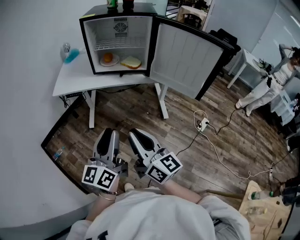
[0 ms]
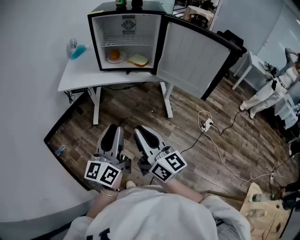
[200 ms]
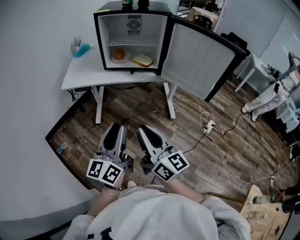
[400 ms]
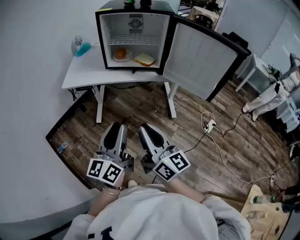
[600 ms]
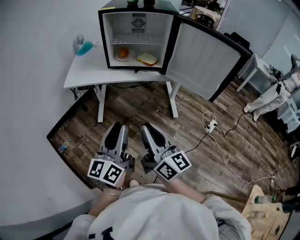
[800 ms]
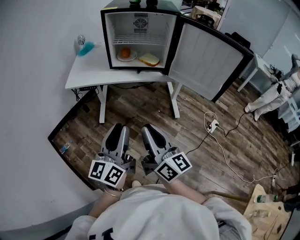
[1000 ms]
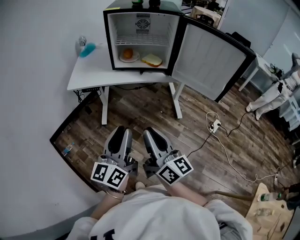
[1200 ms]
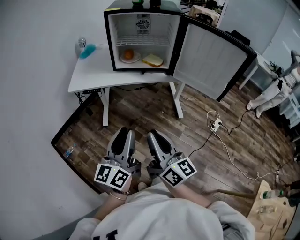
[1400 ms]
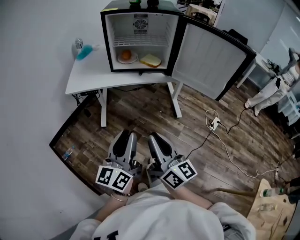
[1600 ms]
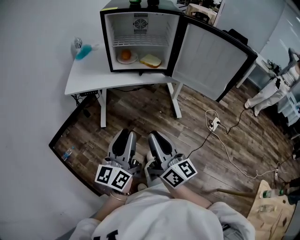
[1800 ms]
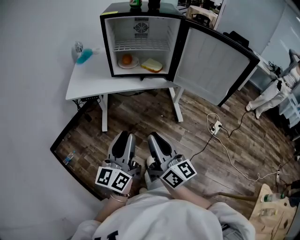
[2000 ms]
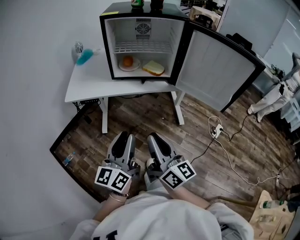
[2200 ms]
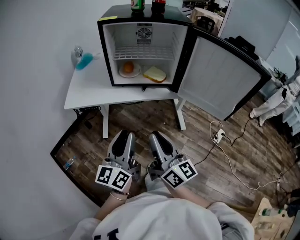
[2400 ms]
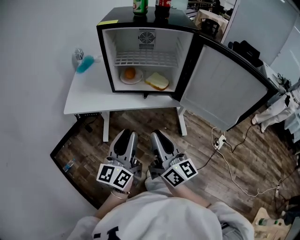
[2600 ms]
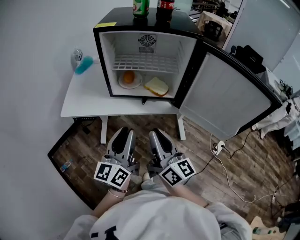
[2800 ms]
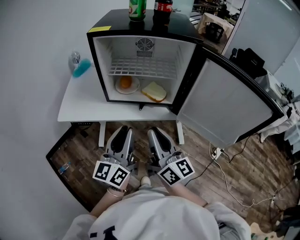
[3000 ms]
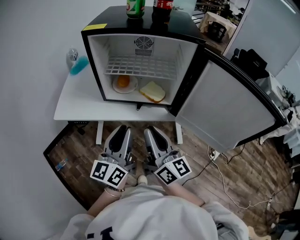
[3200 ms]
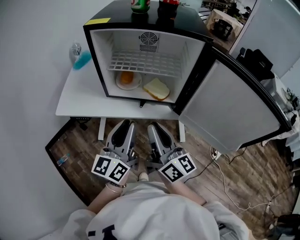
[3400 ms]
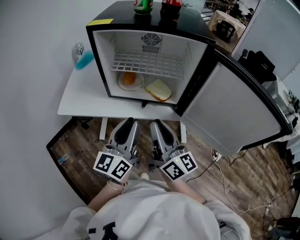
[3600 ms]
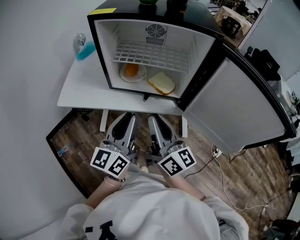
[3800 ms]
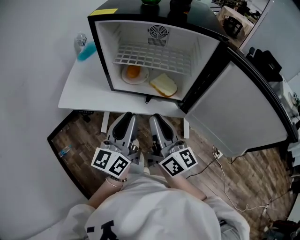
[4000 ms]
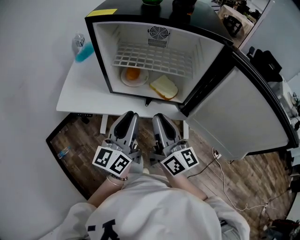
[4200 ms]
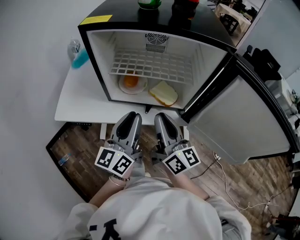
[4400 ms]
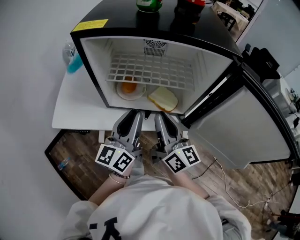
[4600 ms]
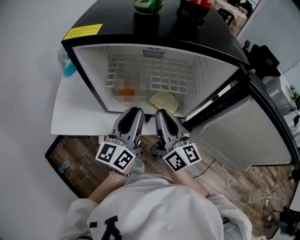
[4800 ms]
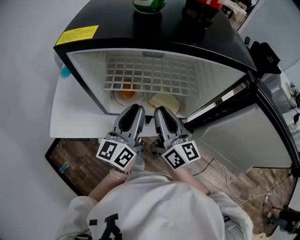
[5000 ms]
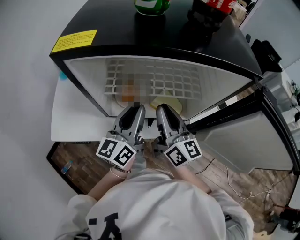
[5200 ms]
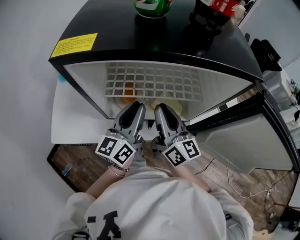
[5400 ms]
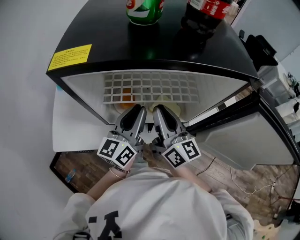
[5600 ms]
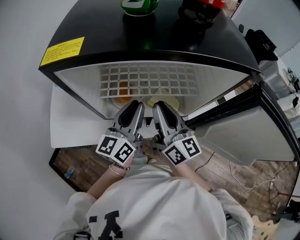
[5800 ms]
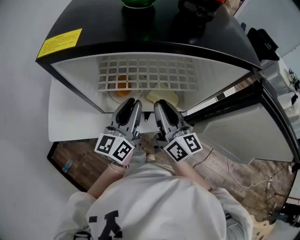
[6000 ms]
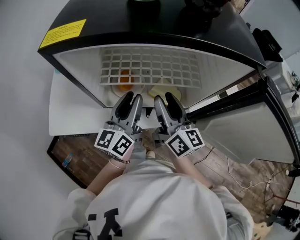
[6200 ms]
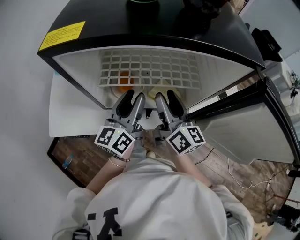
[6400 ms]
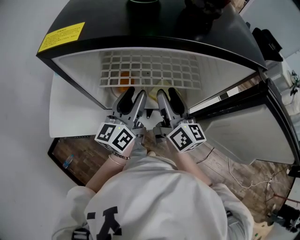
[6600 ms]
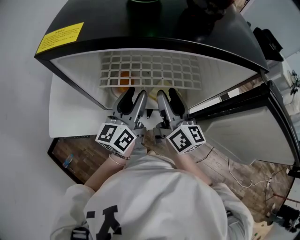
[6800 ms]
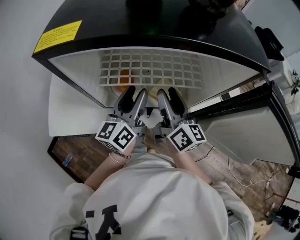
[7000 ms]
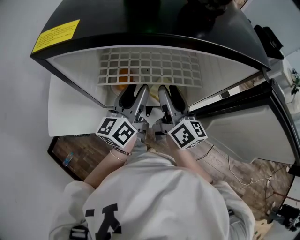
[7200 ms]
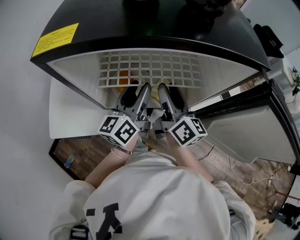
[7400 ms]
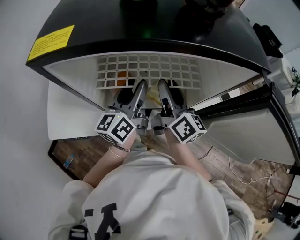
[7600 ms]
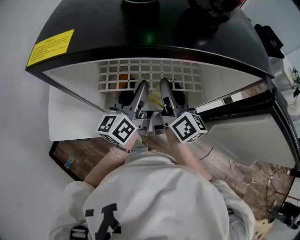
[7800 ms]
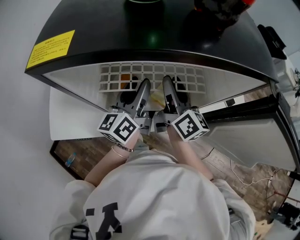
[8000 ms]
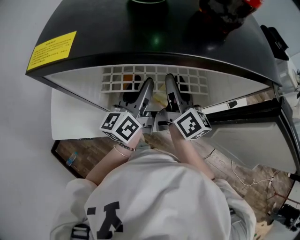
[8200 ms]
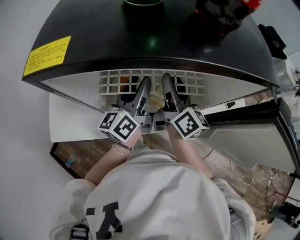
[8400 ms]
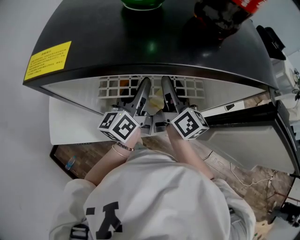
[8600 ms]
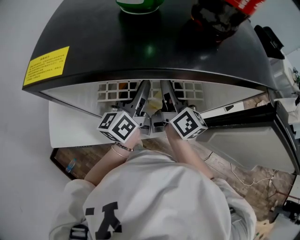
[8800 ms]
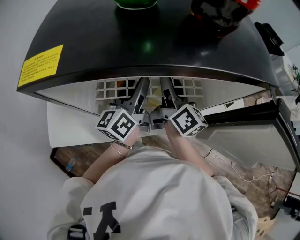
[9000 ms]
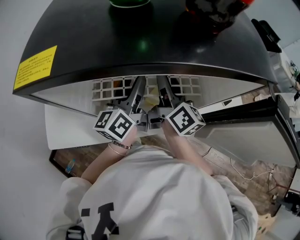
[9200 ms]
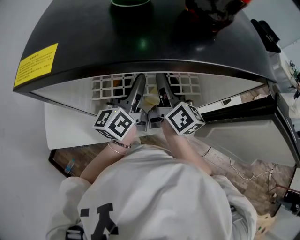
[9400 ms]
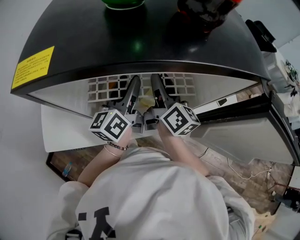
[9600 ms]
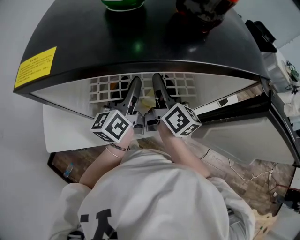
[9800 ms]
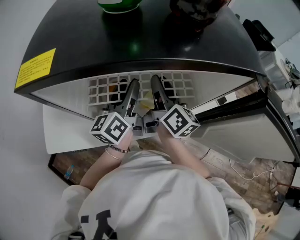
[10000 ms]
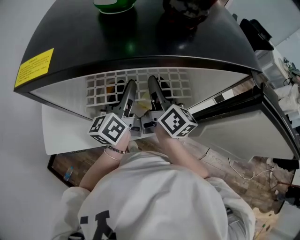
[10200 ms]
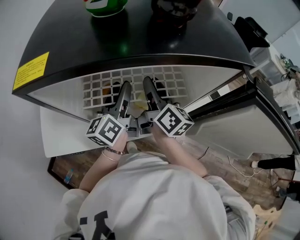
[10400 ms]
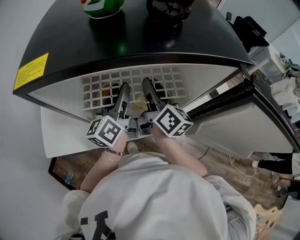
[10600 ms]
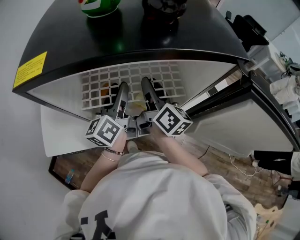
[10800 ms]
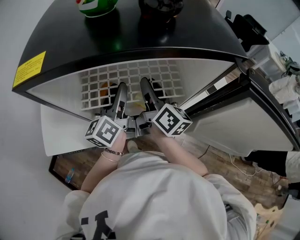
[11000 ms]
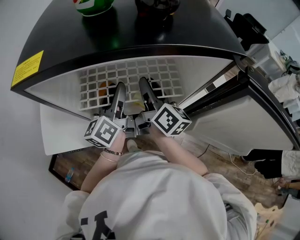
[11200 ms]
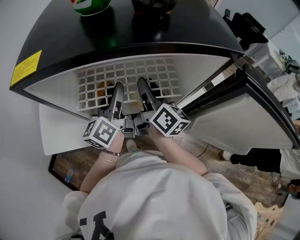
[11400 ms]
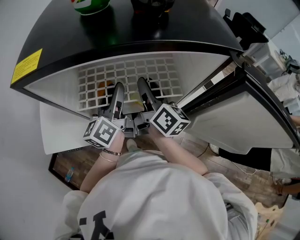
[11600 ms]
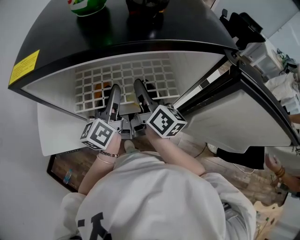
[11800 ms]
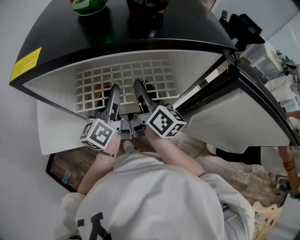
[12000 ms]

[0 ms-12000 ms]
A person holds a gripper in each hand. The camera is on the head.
0 ms to 1600 ms: Both grippers travel together to the left, roughly 5 cm.
1600 ms to 3000 ms: Both grippers move forward, roughly 25 cm.
3000 ms to 4400 ms: The two grippers go some 15 cm forward.
4400 ms to 6000 ms: Both grippers travel together forward, some 15 cm.
6000 ms to 7600 ms: Both grippers move forward, approximately 5 cm. The left gripper opens. Meanwhile the right gripper opens.
7600 ms to 9000 ms: The right gripper heads forward, covering approximately 5 cm.
9000 ms to 10400 ms: The two grippers keep their place.
10400 ms to 12000 ms: The grippers stay close to where they were, moving slightly.

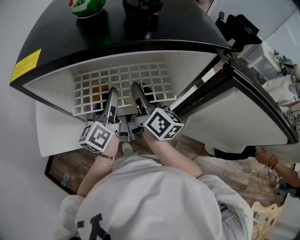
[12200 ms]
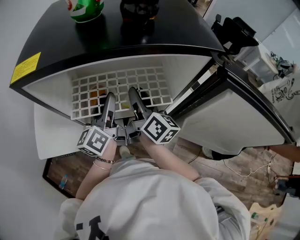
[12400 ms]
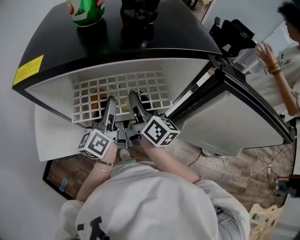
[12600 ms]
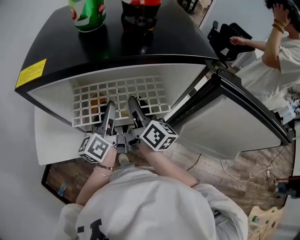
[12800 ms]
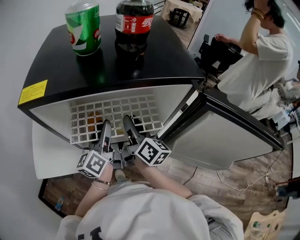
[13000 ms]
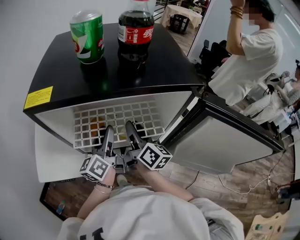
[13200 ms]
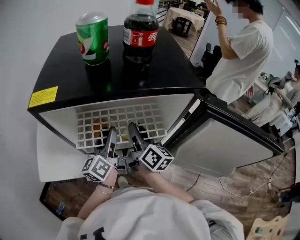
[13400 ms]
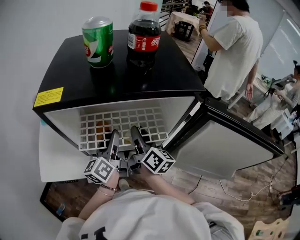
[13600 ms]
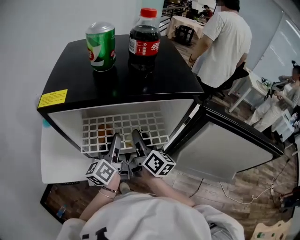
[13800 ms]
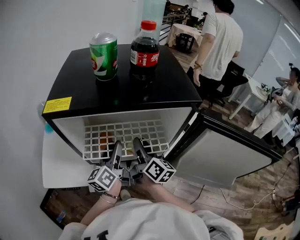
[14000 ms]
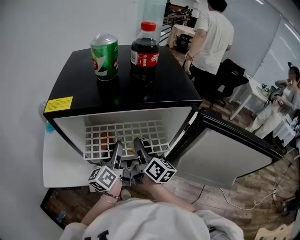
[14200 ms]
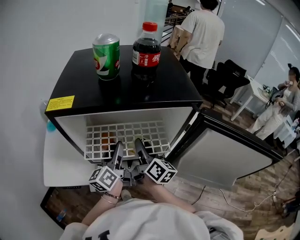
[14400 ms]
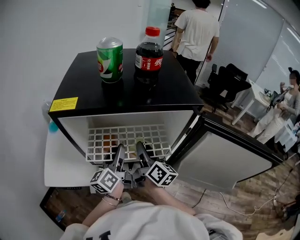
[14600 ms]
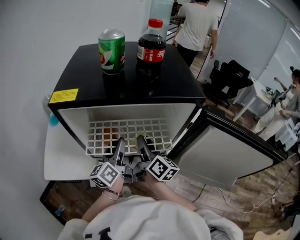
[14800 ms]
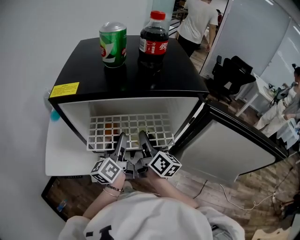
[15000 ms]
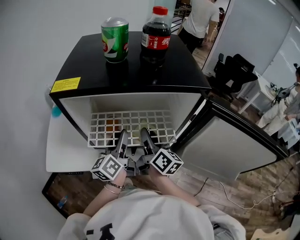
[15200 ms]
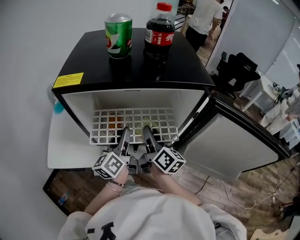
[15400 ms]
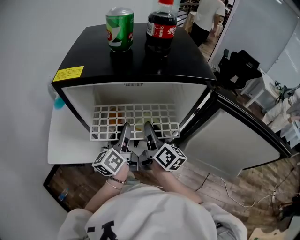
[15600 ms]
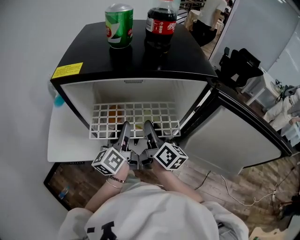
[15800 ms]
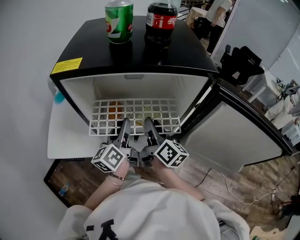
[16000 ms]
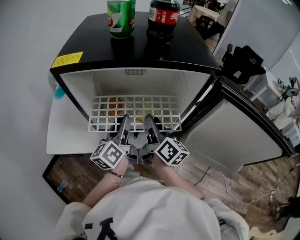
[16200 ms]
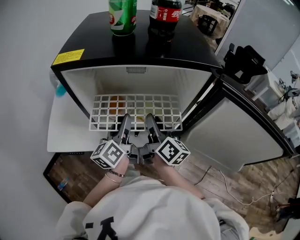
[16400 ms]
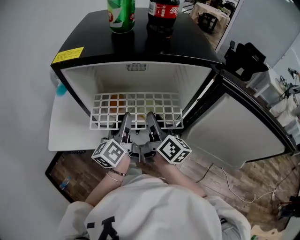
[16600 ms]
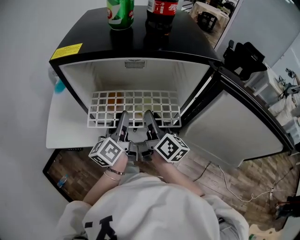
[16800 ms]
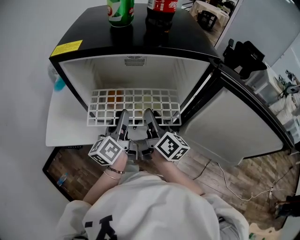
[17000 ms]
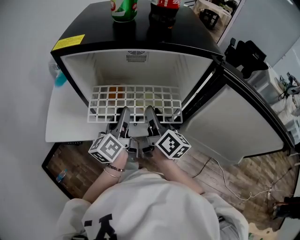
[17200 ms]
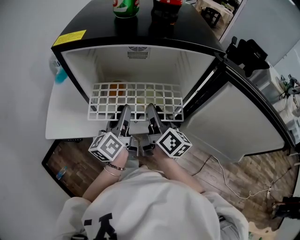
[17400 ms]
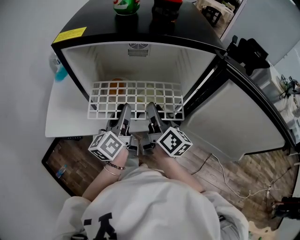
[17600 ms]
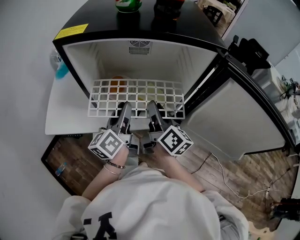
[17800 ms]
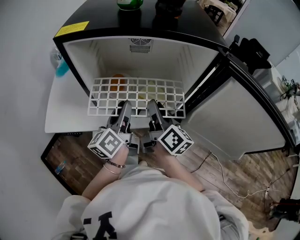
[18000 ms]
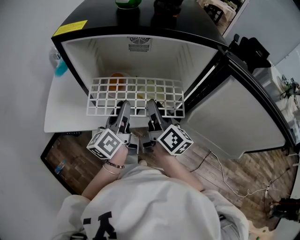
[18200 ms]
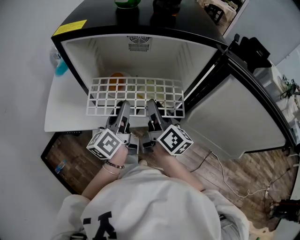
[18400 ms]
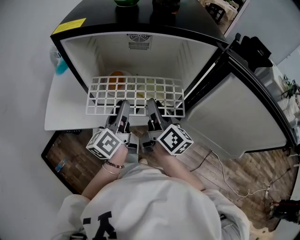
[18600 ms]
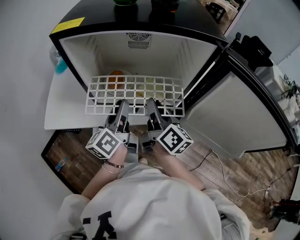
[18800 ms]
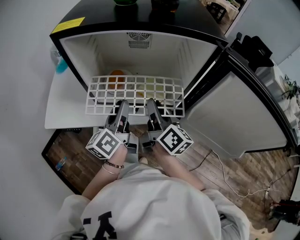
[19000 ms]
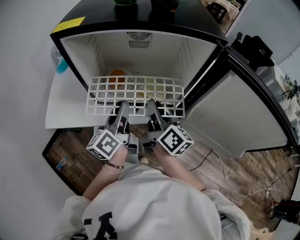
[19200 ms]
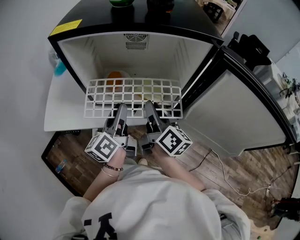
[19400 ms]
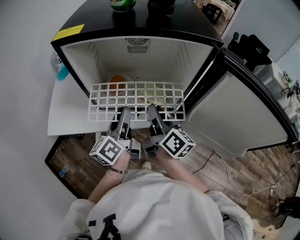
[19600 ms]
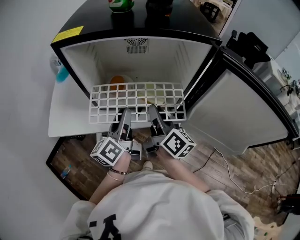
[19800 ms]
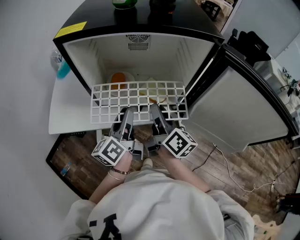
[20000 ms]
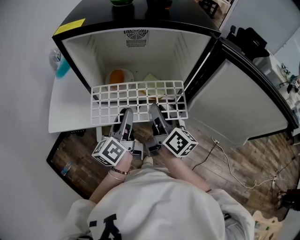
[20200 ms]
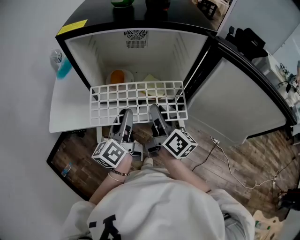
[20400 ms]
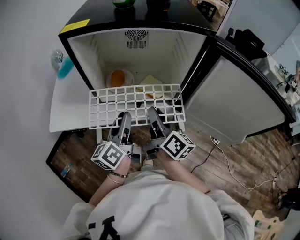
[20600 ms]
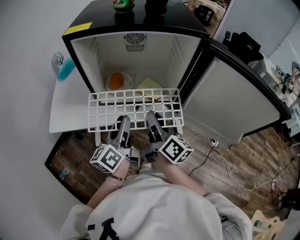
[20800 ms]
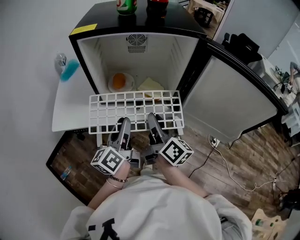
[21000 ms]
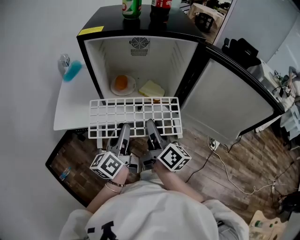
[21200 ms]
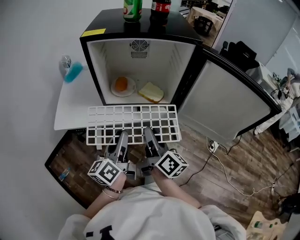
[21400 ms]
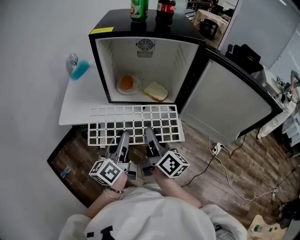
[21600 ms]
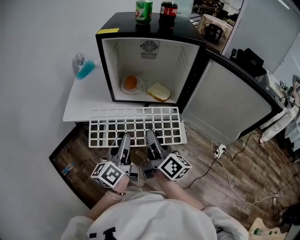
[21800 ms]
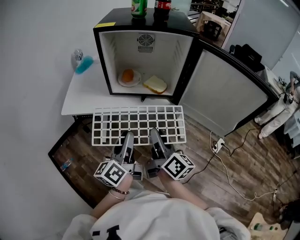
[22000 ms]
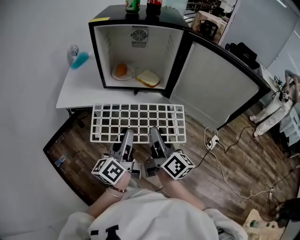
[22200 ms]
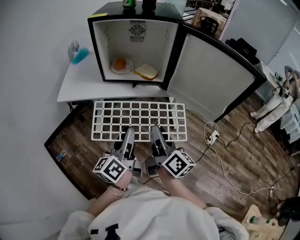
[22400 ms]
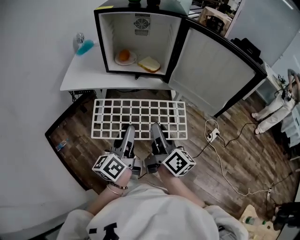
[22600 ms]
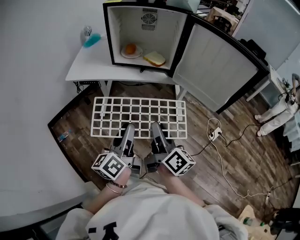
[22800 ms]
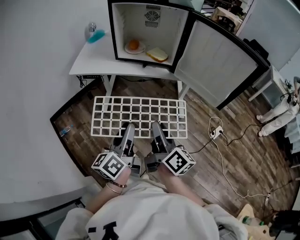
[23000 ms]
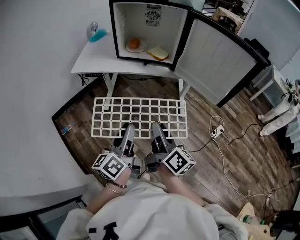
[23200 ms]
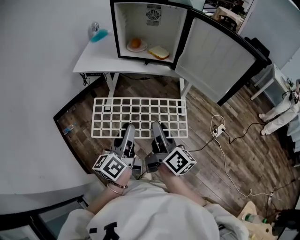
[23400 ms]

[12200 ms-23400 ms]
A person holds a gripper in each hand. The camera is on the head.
12200 ms to 15400 ms: The grippers make only small movements.
15400 ms to 17000 ms: The grippers make only small movements.
17000 ms to 18600 ms: The grippers make only small movements.
18600 ms to 20200 ms: The grippers stay close to where they were, moving slightly.
20200 ms to 21800 ms: Both grippers travel together backward, some 20 cm.
21800 ms to 23400 ms: Both grippers move backward, approximately 25 cm.

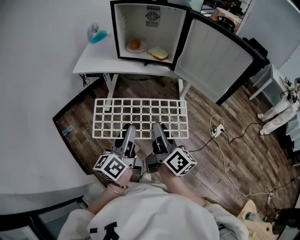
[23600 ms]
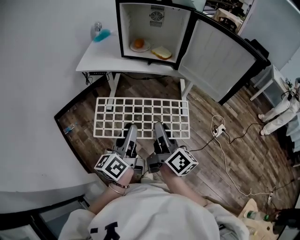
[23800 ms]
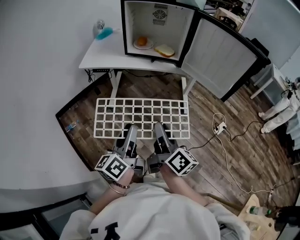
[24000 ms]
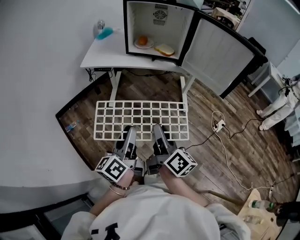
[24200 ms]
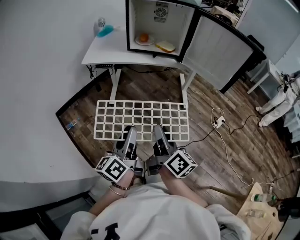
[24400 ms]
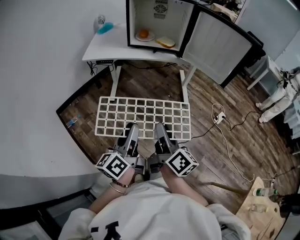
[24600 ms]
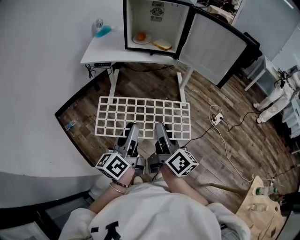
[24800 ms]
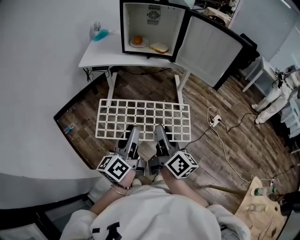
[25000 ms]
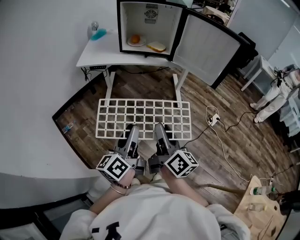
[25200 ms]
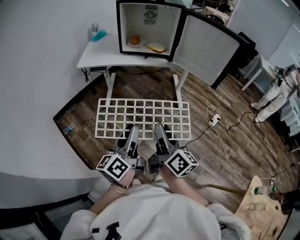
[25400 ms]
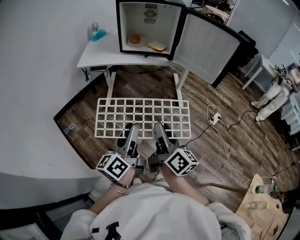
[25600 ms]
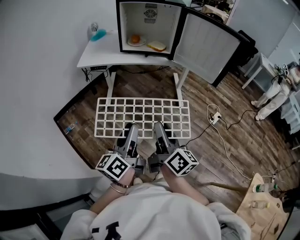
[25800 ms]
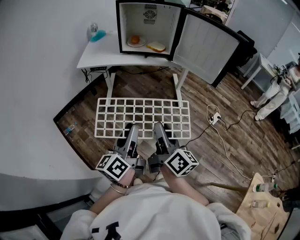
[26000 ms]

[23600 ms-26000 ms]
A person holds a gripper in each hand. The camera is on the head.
23600 ms to 24800 ms: Both grippers travel together backward and to the left, some 15 cm.
24800 ms to 26000 ms: The grippers stay close to where they were, moving slightly.
